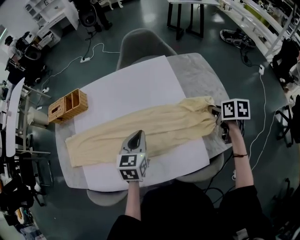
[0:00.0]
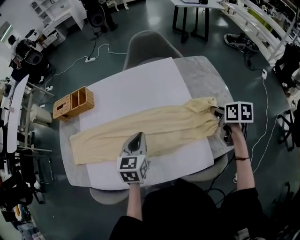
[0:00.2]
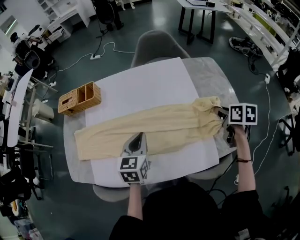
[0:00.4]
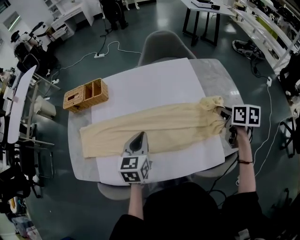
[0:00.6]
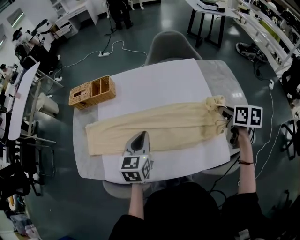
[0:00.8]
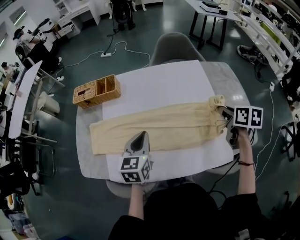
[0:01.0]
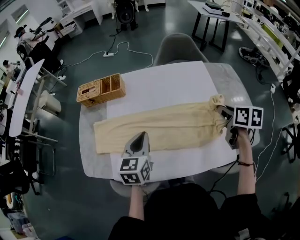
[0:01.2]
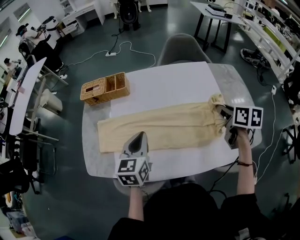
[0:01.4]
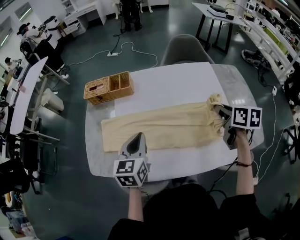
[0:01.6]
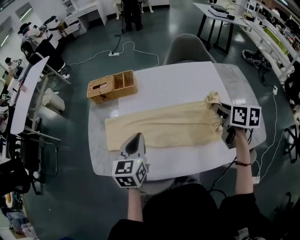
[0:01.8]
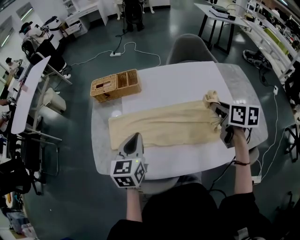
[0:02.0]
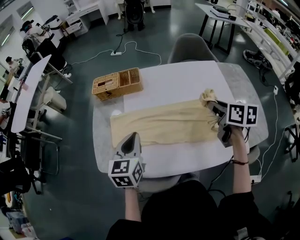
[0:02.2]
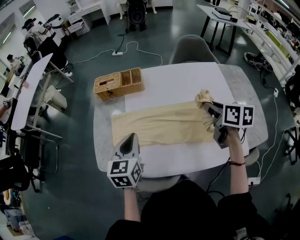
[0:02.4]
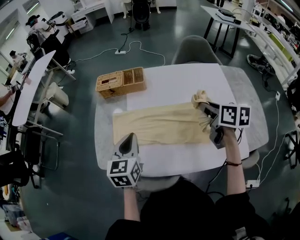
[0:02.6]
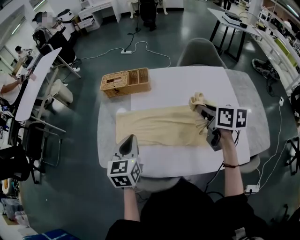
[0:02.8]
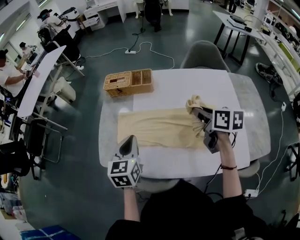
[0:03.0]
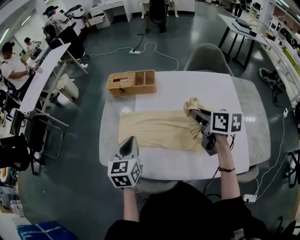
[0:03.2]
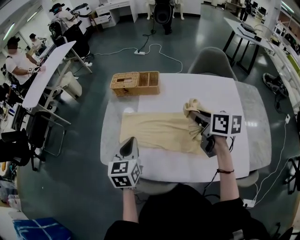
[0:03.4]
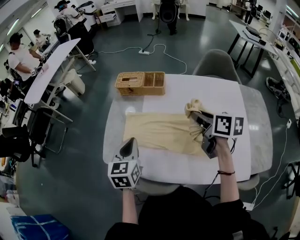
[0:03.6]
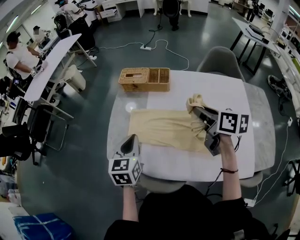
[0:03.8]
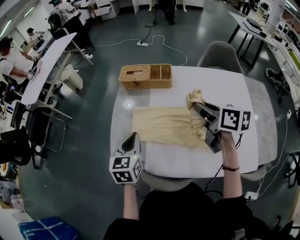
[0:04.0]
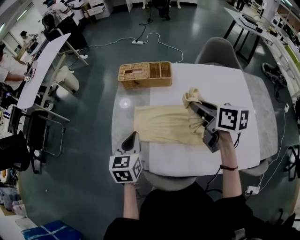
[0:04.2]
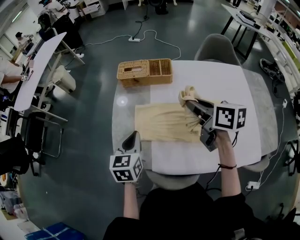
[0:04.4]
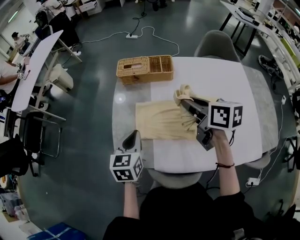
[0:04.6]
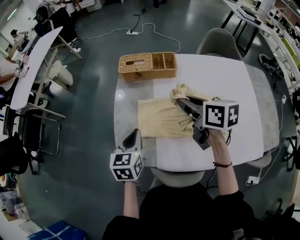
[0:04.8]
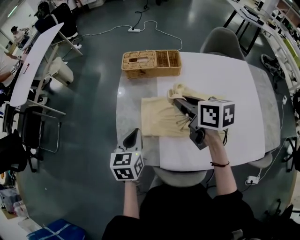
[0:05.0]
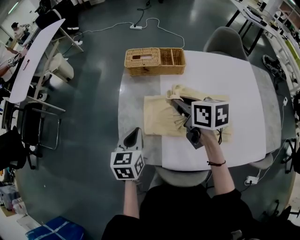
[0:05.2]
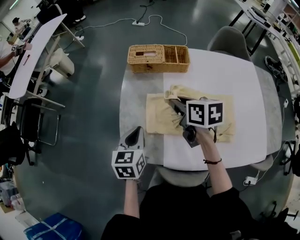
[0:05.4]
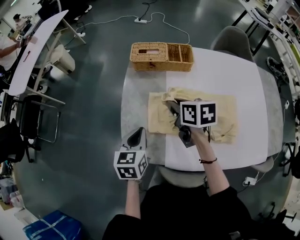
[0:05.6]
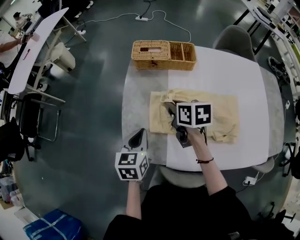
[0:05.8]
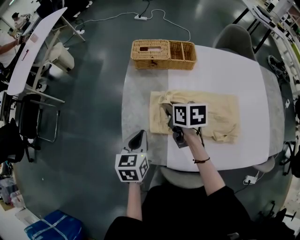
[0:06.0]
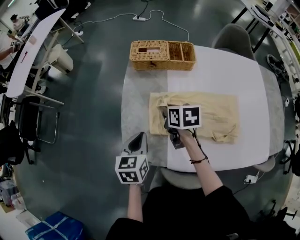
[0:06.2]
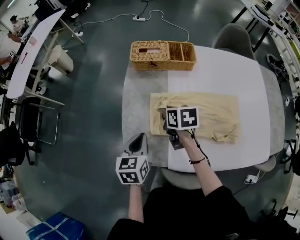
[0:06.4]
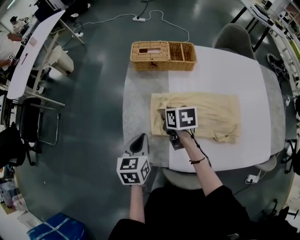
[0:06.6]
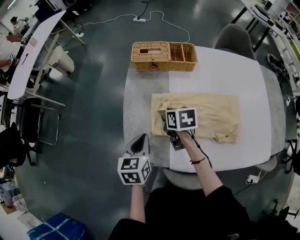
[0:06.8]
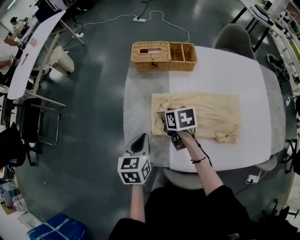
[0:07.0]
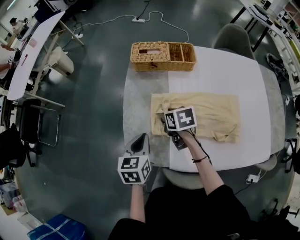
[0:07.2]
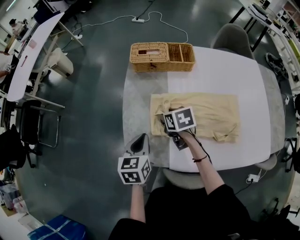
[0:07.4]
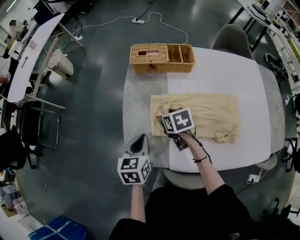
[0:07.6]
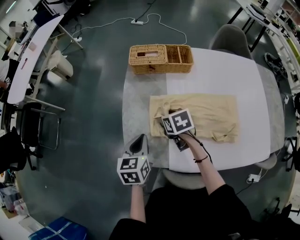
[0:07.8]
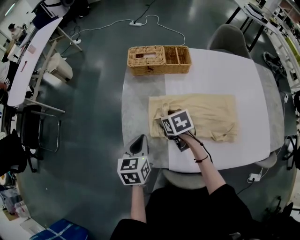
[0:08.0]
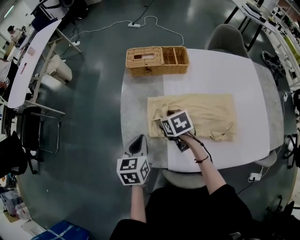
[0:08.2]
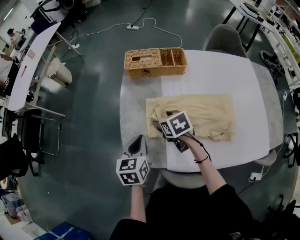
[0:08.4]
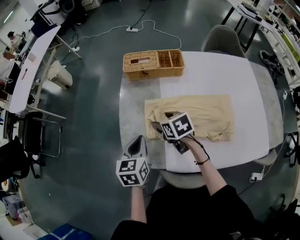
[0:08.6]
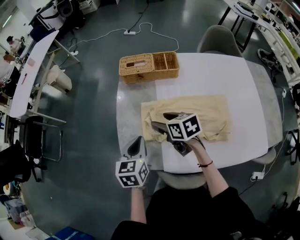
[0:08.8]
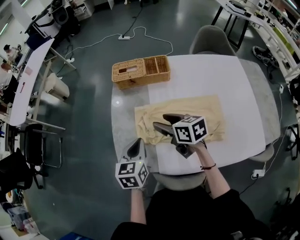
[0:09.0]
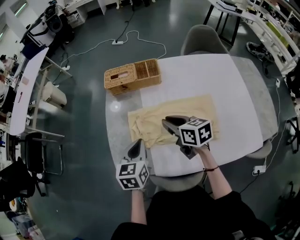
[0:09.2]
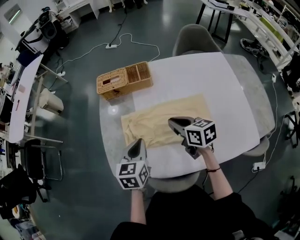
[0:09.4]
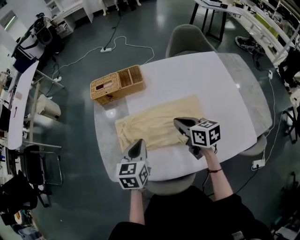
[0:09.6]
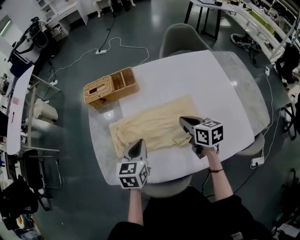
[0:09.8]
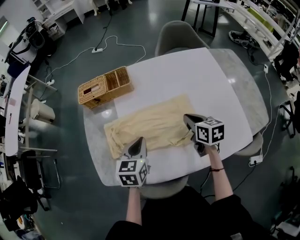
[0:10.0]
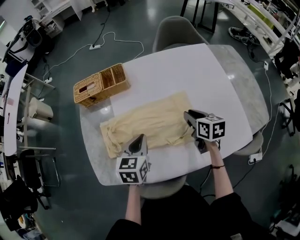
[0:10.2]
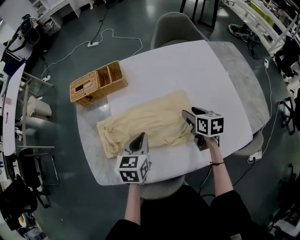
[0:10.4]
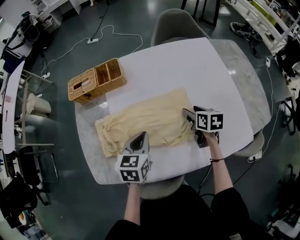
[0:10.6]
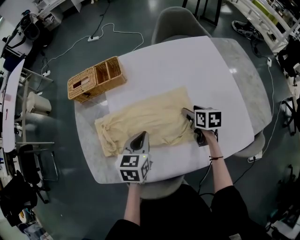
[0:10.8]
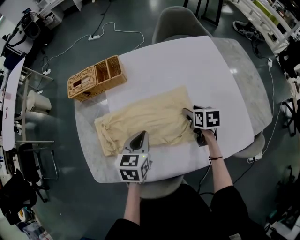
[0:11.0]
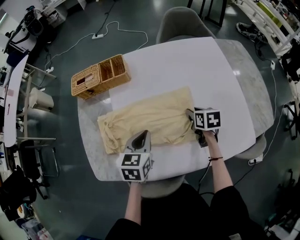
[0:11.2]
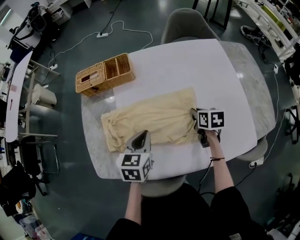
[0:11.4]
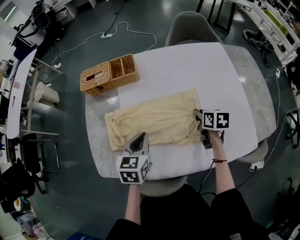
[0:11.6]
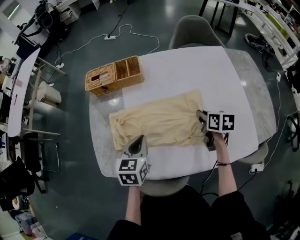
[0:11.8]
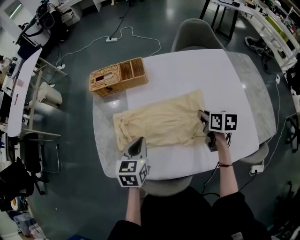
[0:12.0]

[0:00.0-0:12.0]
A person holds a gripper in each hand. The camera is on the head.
0:00.0 to 0:01.6: Both grippers travel together to the left, roughly 30 cm.
0:01.6 to 0:03.0: The right gripper shifts approximately 15 cm to the left, while the left gripper shifts about 10 cm to the left.
0:03.0 to 0:04.4: Both grippers travel together to the left and forward, approximately 15 cm.
0:04.4 to 0:06.0: The right gripper goes about 25 cm downward and to the left, and rotates roughly 20 degrees, while the left gripper moves downward and to the left, roughly 10 cm.
0:06.0 to 0:07.6: The right gripper is displaced downward by approximately 5 cm, and opens its fingers.
0:07.6 to 0:09.0: The right gripper is displaced upward by approximately 10 cm, and turns by about 30 degrees. The left gripper travels to the right by approximately 5 cm.
0:09.0 to 0:10.4: The right gripper changes place by some 35 cm, changes its angle by about 30 degrees, and closes, then opens again, while the left gripper changes place by some 20 cm.
0:10.4 to 0:12.0: The right gripper closes up. Meanwhile the left gripper is displaced to the left by about 10 cm.

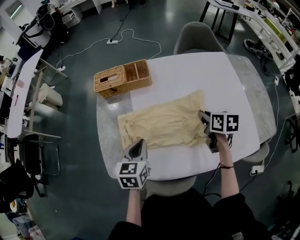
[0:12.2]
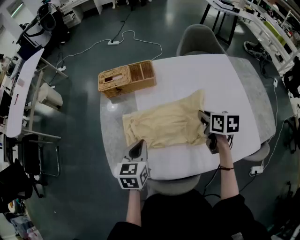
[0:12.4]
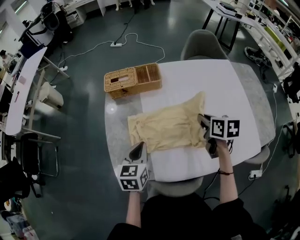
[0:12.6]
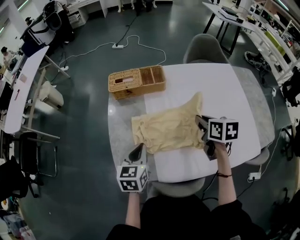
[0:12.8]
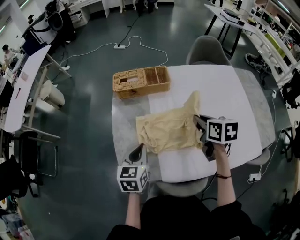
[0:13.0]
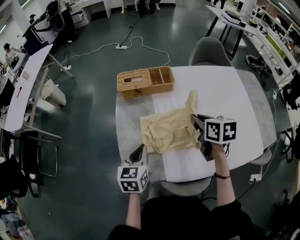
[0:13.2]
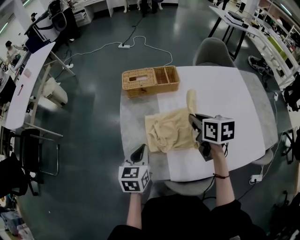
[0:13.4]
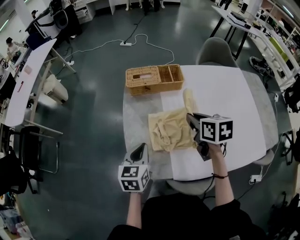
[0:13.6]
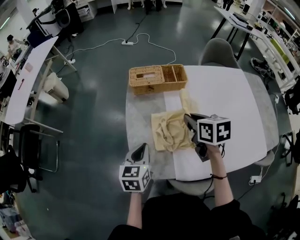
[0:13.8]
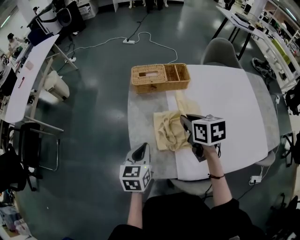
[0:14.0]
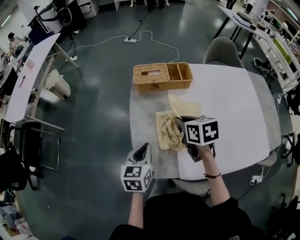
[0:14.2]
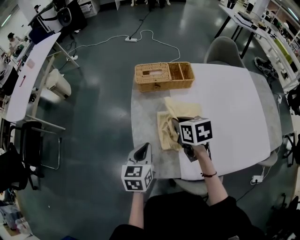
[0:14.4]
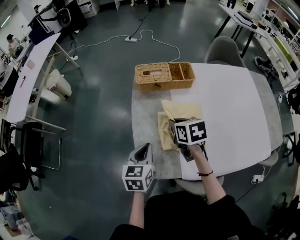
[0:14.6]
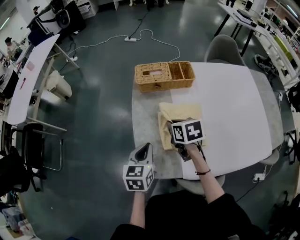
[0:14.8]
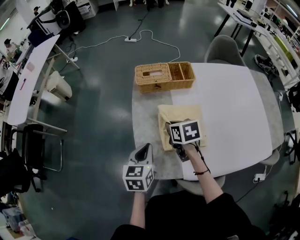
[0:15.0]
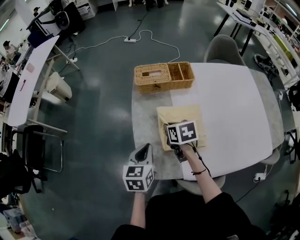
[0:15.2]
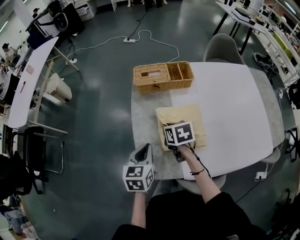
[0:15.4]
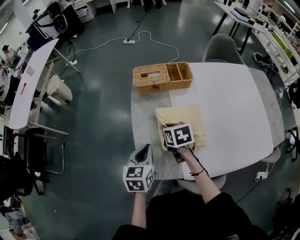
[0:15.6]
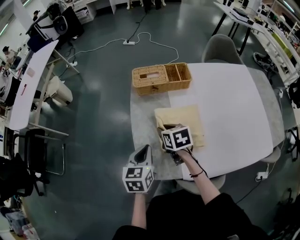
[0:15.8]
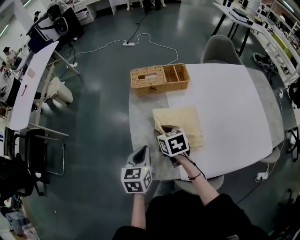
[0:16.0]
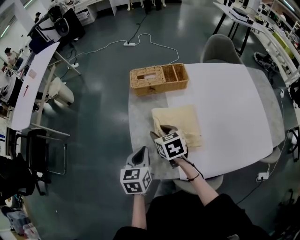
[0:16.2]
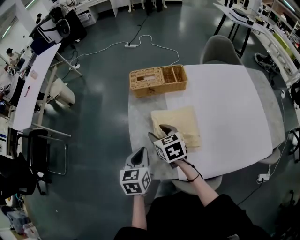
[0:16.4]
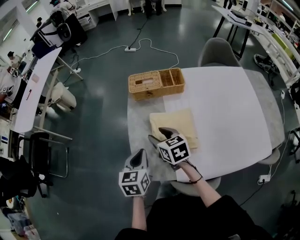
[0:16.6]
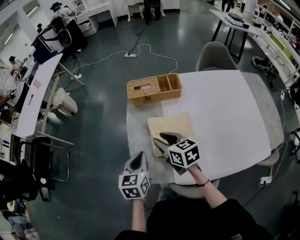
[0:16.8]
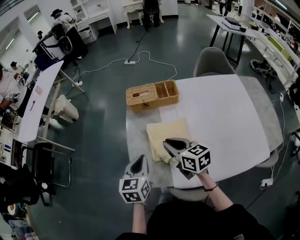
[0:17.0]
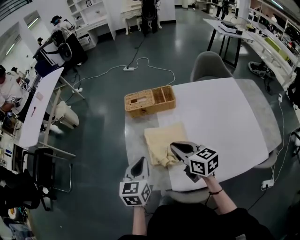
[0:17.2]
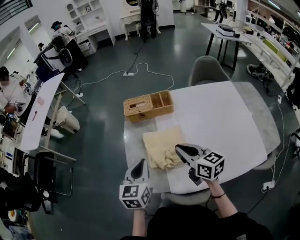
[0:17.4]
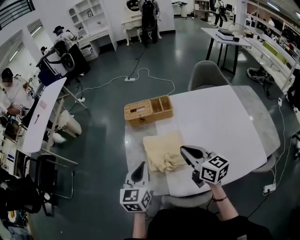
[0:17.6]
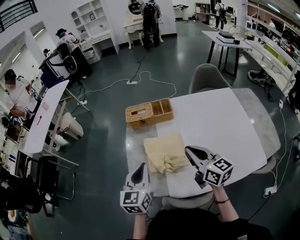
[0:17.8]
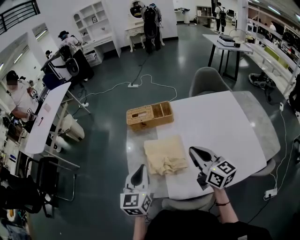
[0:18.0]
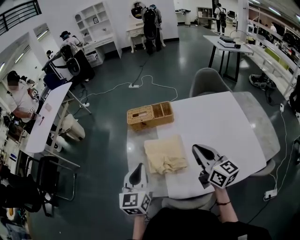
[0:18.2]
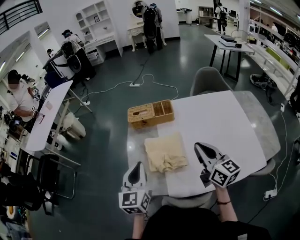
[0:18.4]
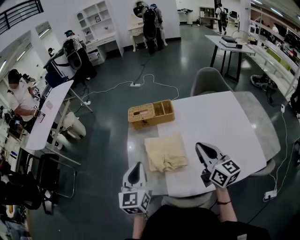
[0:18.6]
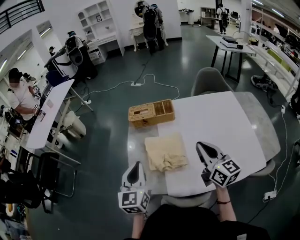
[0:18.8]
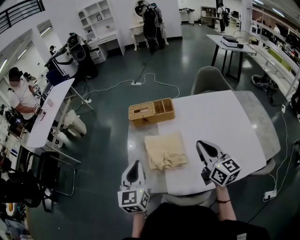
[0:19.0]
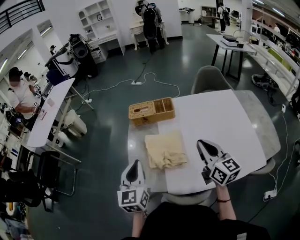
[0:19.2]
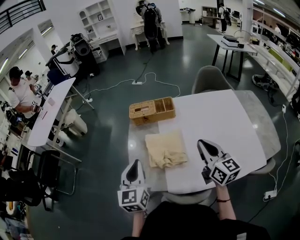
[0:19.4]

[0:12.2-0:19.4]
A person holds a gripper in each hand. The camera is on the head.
0:12.2 to 0:13.6: The right gripper moves to the left, approximately 25 cm; the left gripper is displaced to the left by approximately 15 cm.
0:13.6 to 0:15.0: The right gripper heads to the left and downward, covering about 15 cm.
0:15.0 to 0:16.6: The right gripper shifts by some 5 cm, and opens its fingers.
0:16.6 to 0:18.0: The right gripper heads to the right, upward and backward, covering roughly 30 cm, tilts its fingers roughly 30 degrees upward, and closes its fingers, while the left gripper is displaced upward and to the right by about 15 cm, and swivels roughly 20 degrees.
0:18.0 to 0:19.4: The grippers move only a little.

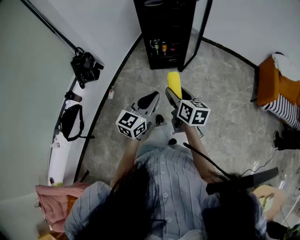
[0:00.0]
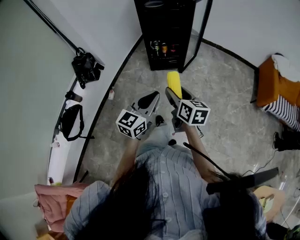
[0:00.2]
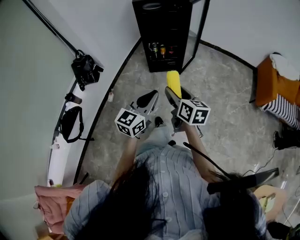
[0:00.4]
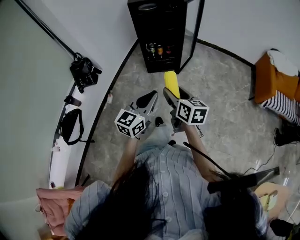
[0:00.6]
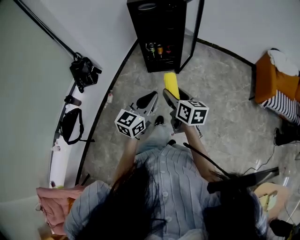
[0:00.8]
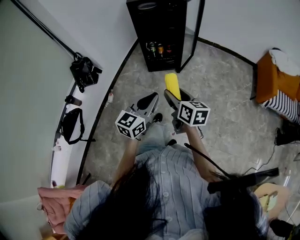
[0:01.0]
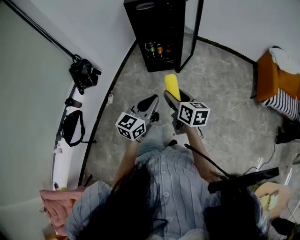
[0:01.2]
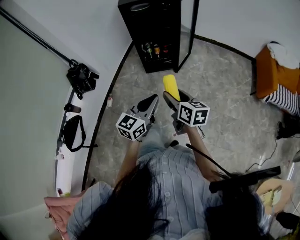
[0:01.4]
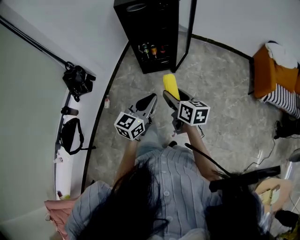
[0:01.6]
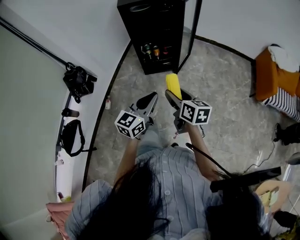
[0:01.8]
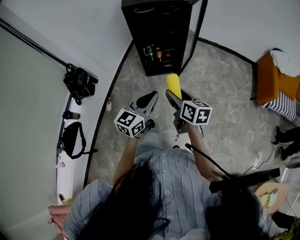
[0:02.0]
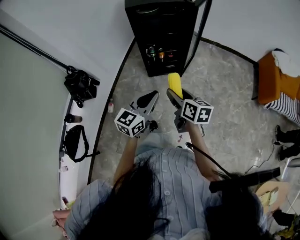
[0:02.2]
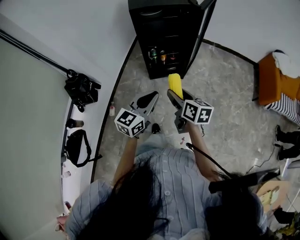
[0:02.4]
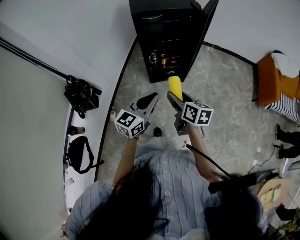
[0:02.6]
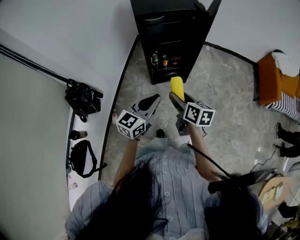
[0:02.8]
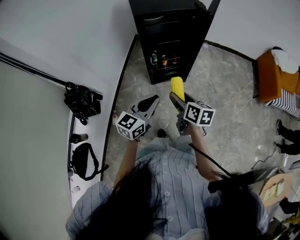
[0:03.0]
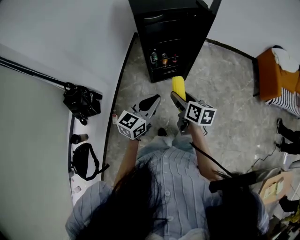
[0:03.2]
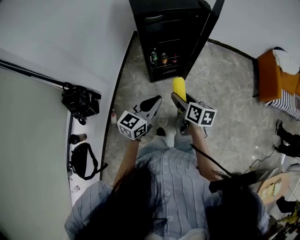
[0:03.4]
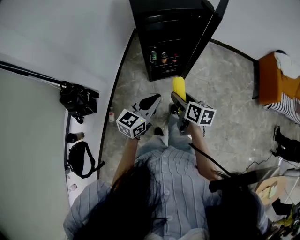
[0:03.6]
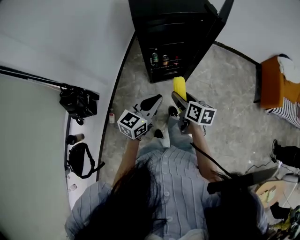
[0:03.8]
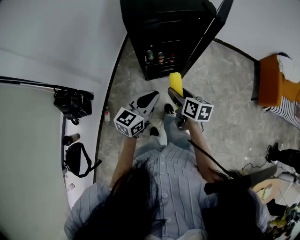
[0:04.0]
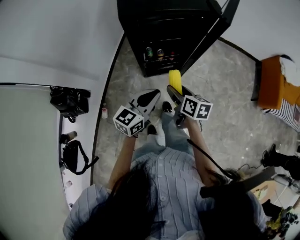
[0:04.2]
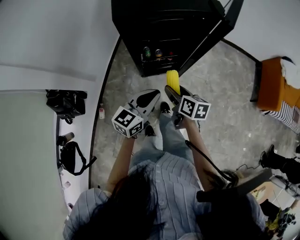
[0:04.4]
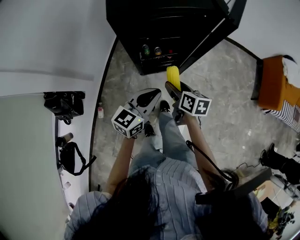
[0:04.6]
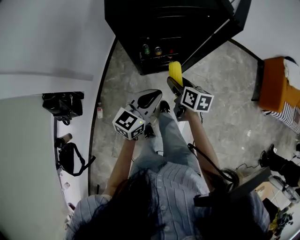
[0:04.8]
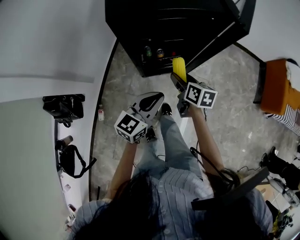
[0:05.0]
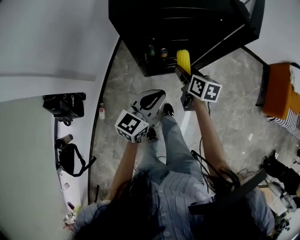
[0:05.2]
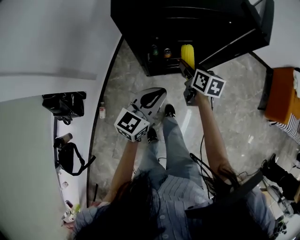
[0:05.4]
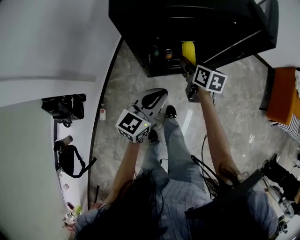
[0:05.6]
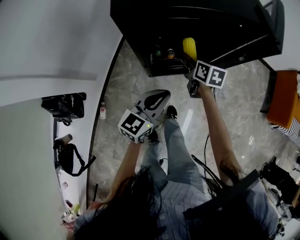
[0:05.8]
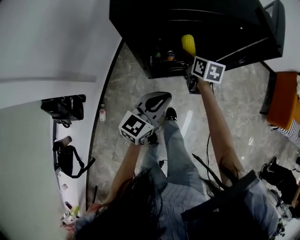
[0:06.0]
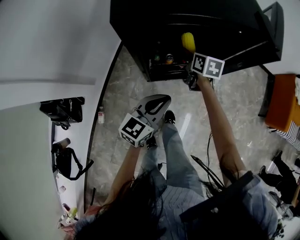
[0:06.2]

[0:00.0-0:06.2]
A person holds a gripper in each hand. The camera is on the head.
0:00.0 to 0:01.6: The right gripper shifts by some 5 cm; the left gripper shifts about 5 cm forward.
0:01.6 to 0:03.2: The grippers both shift forward and to the left by roughly 30 cm.
0:03.2 to 0:04.6: The left gripper shifts some 20 cm forward; the right gripper goes some 20 cm forward and downward.
0:04.6 to 0:06.2: The left gripper moves downward and forward, roughly 10 cm. Meanwhile the right gripper heads forward, covering roughly 25 cm.
